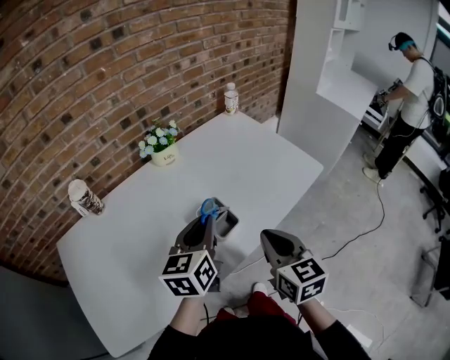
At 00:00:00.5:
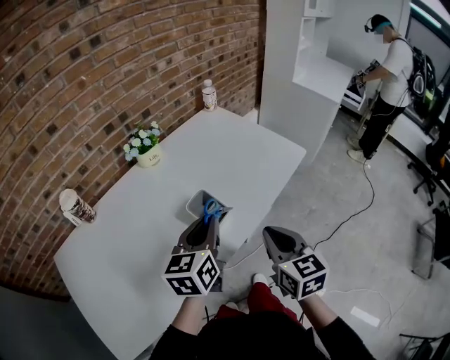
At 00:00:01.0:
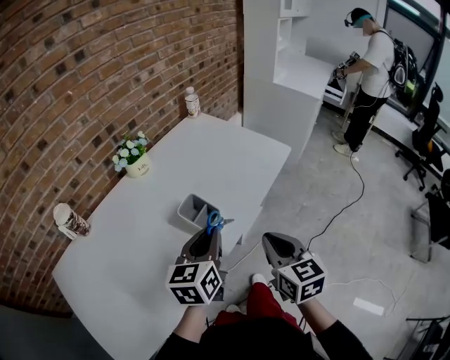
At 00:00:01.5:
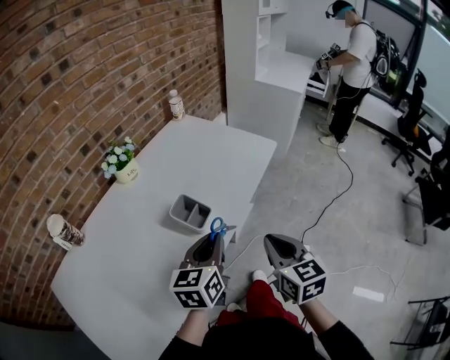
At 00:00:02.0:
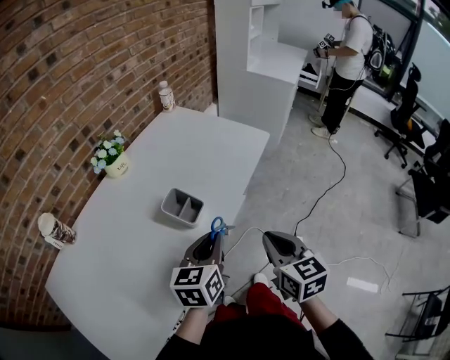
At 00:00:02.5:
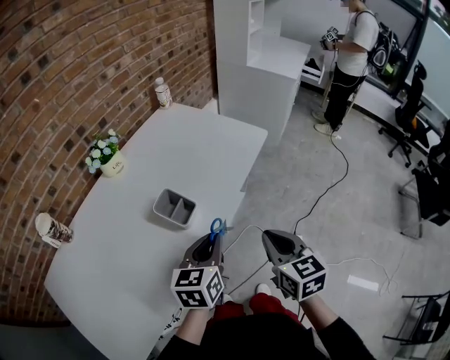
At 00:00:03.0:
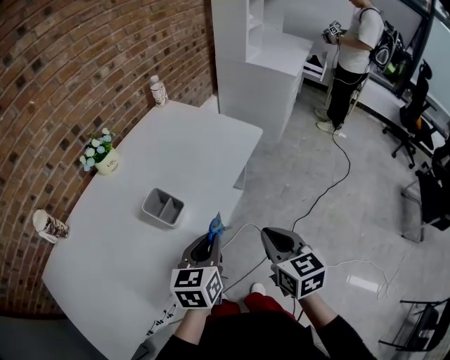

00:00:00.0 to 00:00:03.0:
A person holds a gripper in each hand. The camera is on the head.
00:00:00.0 to 00:00:01.5: Both grippers move backward and to the right, about 10 cm. The left gripper rotates about 20 degrees, while the right gripper rotates about 20 degrees.
00:00:01.5 to 00:00:03.0: The grippers both shift to the right by approximately 10 cm.

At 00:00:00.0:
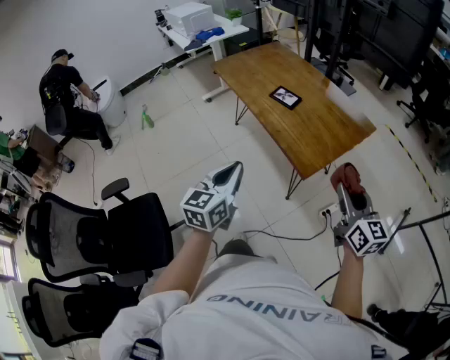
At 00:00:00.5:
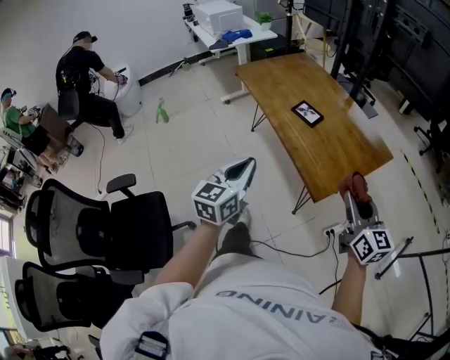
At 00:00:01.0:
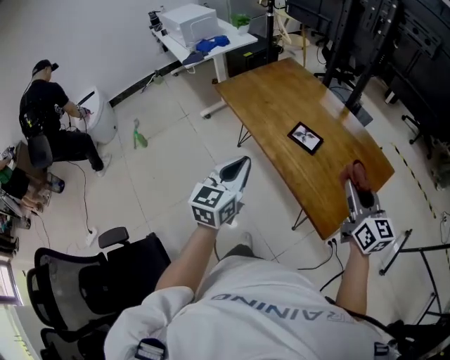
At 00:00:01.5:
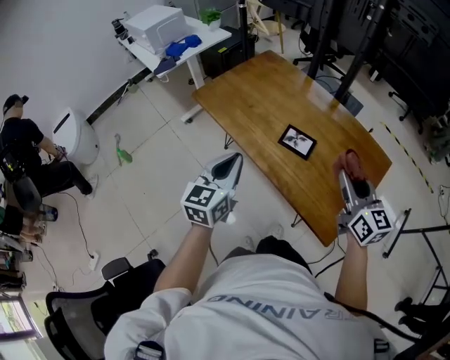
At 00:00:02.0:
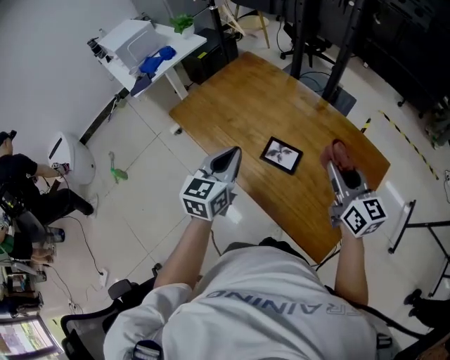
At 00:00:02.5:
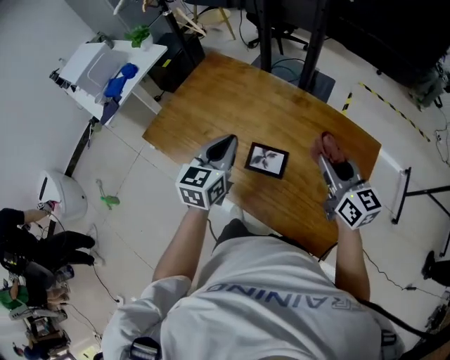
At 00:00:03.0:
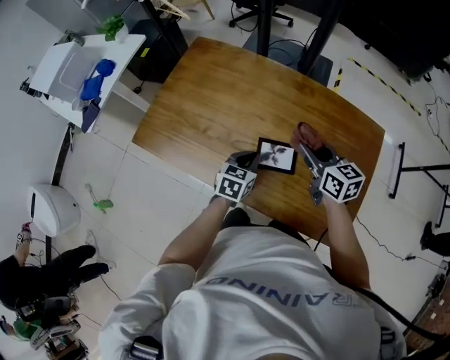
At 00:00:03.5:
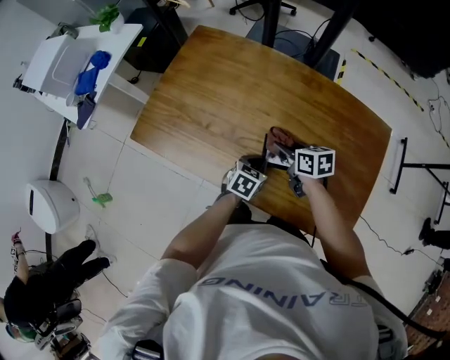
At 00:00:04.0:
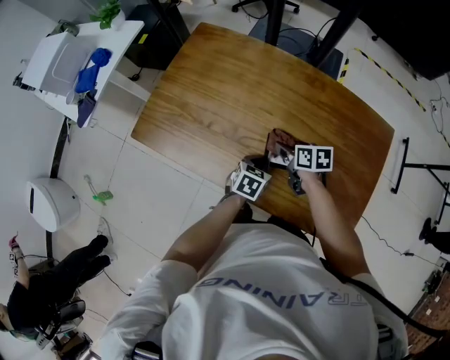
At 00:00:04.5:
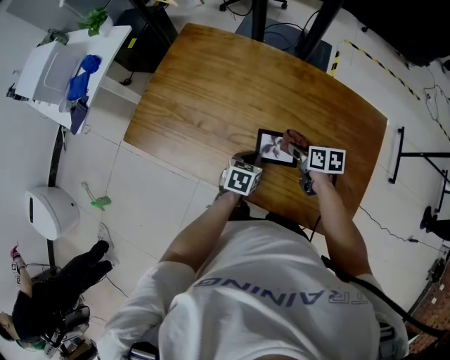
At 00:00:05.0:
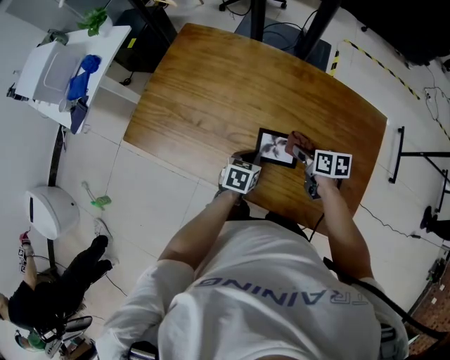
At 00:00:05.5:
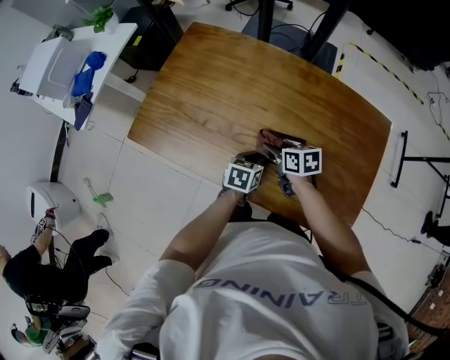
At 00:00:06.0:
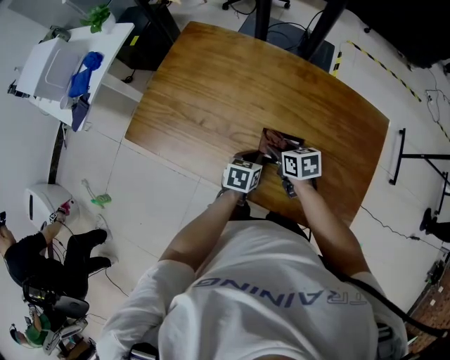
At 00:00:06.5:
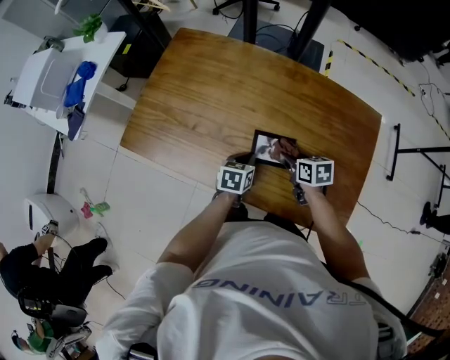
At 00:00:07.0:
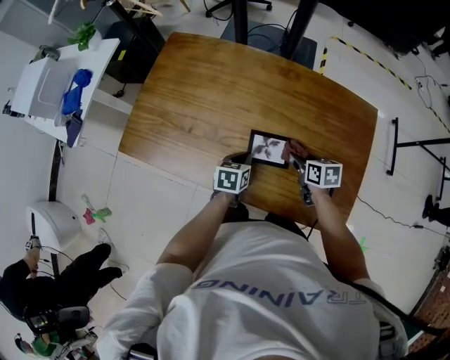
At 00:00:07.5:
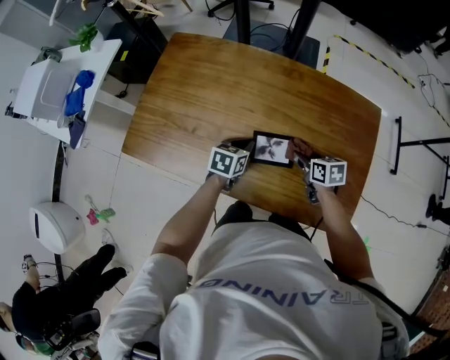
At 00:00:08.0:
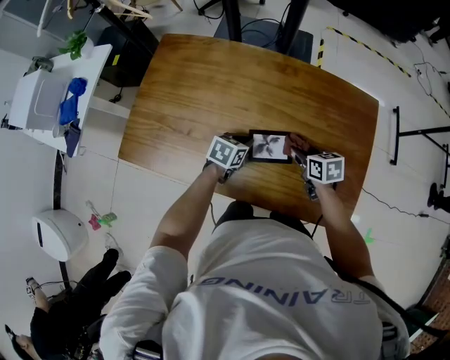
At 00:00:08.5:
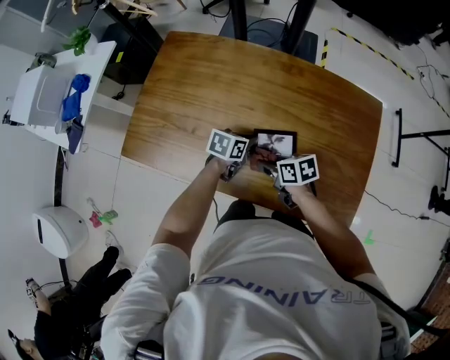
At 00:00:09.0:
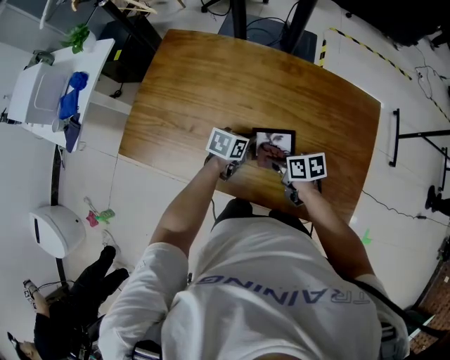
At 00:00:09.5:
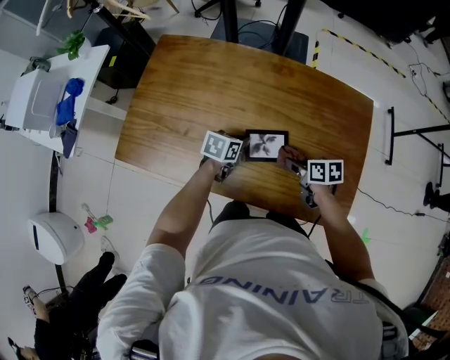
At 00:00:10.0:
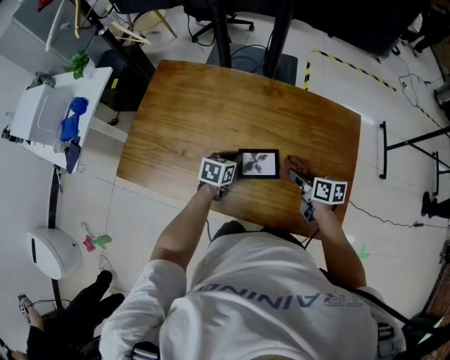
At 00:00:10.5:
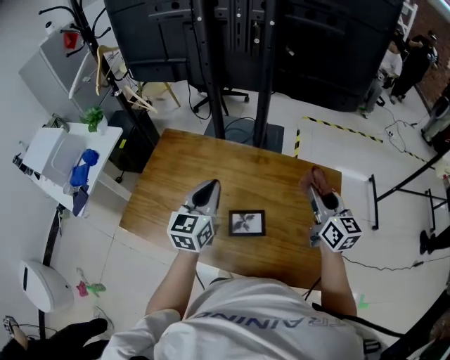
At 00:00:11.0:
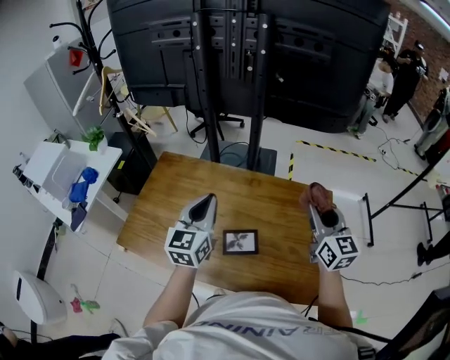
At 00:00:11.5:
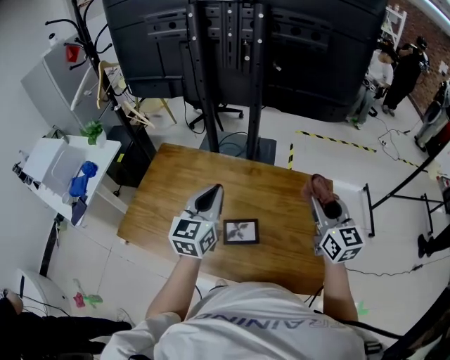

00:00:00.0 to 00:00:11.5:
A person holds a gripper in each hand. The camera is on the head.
00:00:00.0 to 00:00:02.0: The two grippers travel together, forward, some 50 cm.
00:00:02.0 to 00:00:04.0: The left gripper travels downward by roughly 30 cm, and angles its fingers downward, by about 30 degrees. The right gripper goes about 35 cm downward, to the left and forward, and tips its fingers downward by approximately 40 degrees.
00:00:04.0 to 00:00:06.0: The right gripper travels to the right and back again, roughly 10 cm each way.
00:00:06.0 to 00:00:07.5: The left gripper shifts by approximately 5 cm. Meanwhile the right gripper goes some 10 cm to the right.
00:00:09.5 to 00:00:11.5: Both grippers move upward, roughly 35 cm. The left gripper tilts its fingers some 40 degrees upward; the right gripper tilts its fingers roughly 40 degrees upward.

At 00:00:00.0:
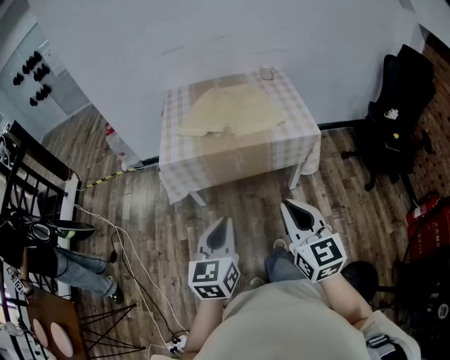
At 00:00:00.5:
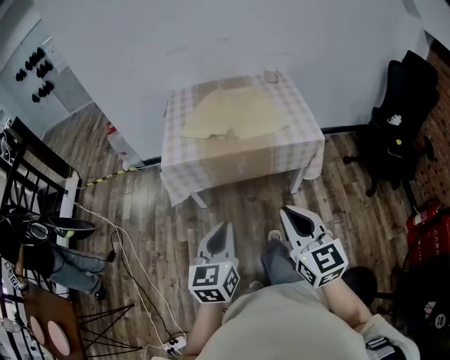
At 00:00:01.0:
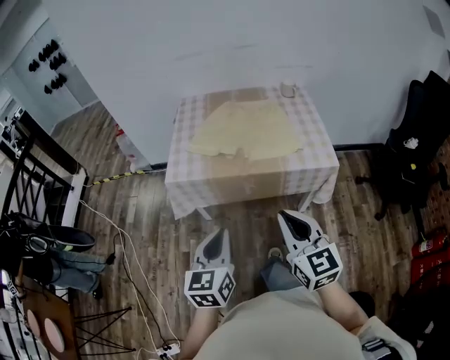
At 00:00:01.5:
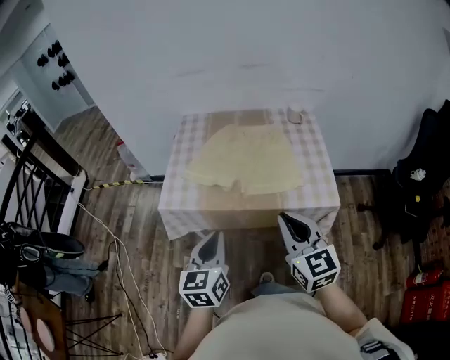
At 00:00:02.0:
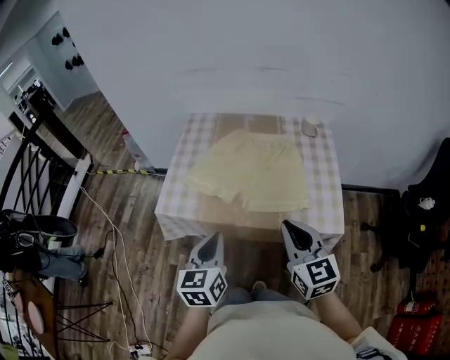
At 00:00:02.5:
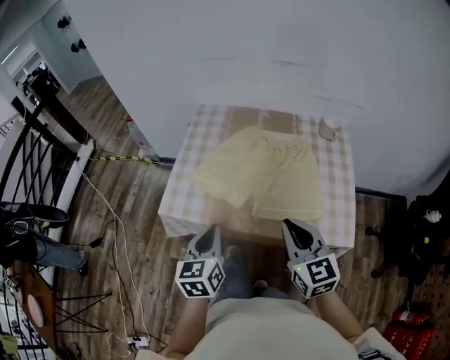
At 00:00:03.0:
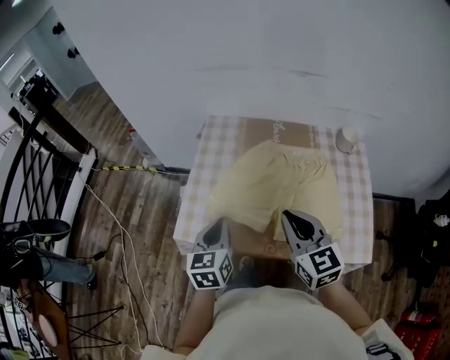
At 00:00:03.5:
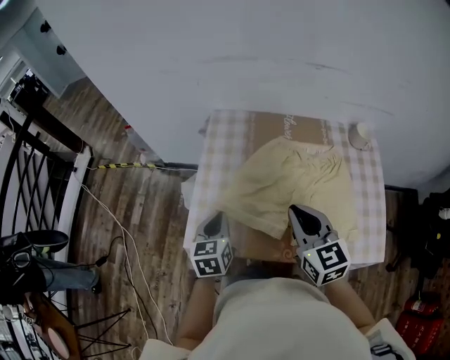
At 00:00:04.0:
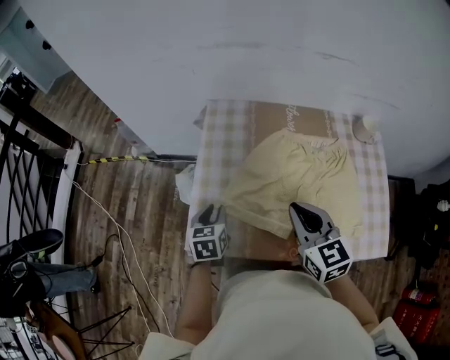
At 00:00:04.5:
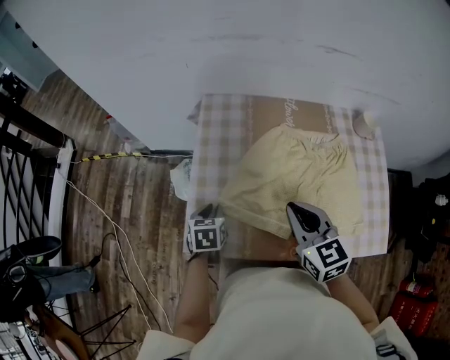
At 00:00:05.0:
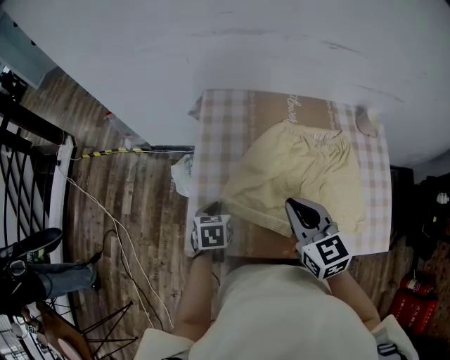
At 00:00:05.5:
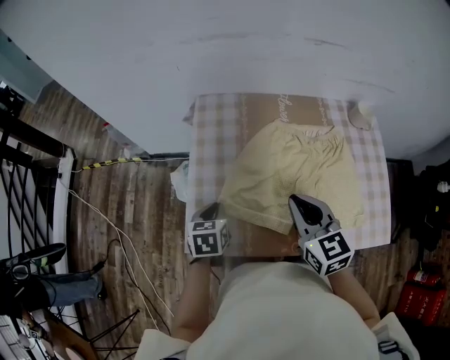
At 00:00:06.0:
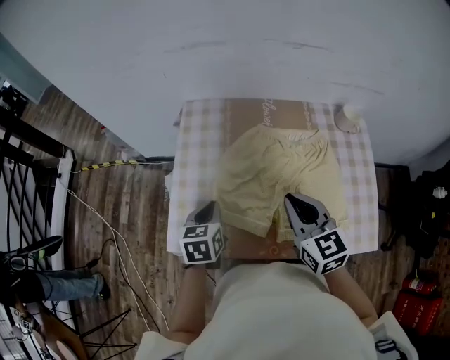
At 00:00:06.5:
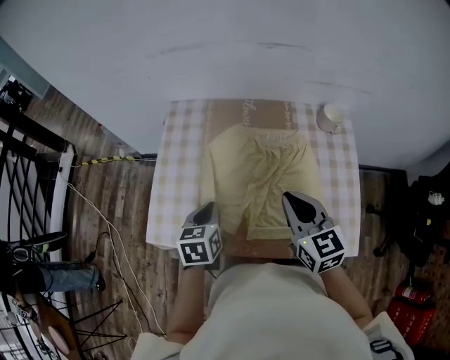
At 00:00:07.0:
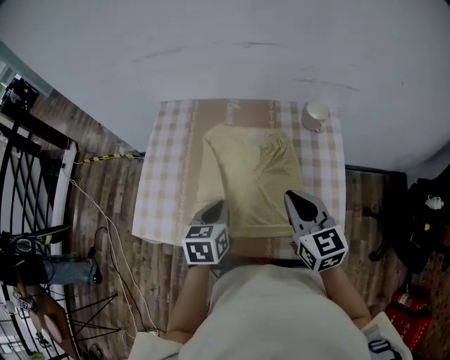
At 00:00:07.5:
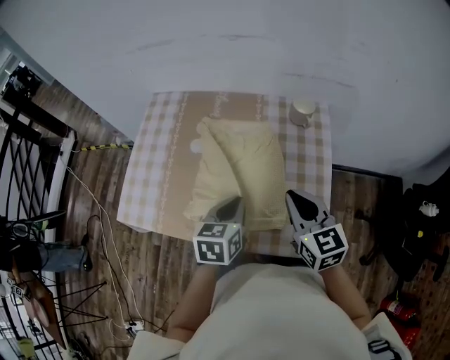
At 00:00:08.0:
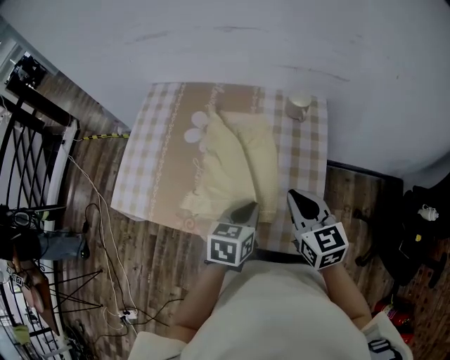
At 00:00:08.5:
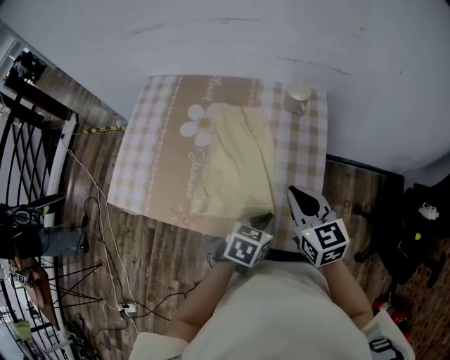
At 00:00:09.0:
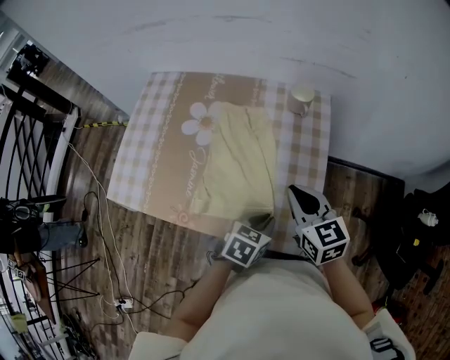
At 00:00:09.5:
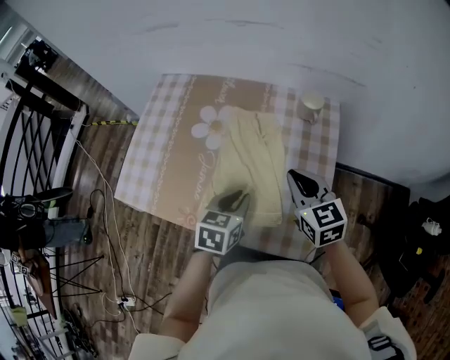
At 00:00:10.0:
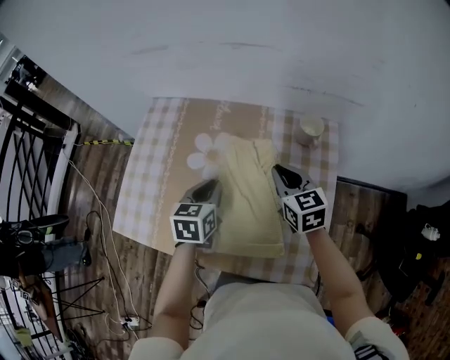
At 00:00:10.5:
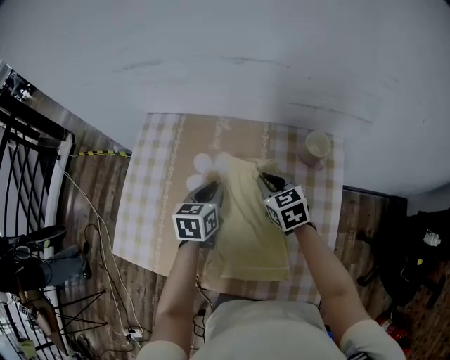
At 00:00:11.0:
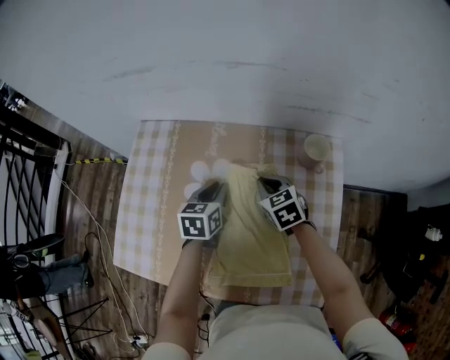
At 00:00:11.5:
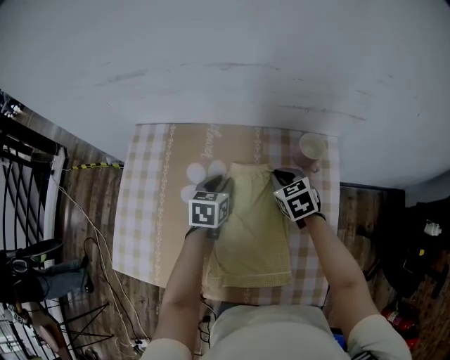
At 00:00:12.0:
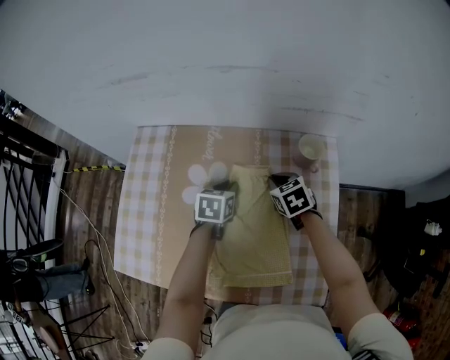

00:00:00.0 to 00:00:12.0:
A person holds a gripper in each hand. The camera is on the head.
00:00:00.0 to 00:00:02.0: The two grippers go about 30 cm forward.
00:00:02.0 to 00:00:04.0: The left gripper heads forward, downward and to the left, covering approximately 35 cm, swivels roughly 20 degrees, and opens its fingers. The right gripper is displaced forward and to the left by roughly 30 cm.
00:00:04.0 to 00:00:06.0: The two grippers go roughly 5 cm to the right. The left gripper closes.
00:00:06.0 to 00:00:08.0: Both grippers travel together to the right, about 35 cm.
00:00:08.0 to 00:00:10.0: The right gripper moves forward, approximately 15 cm; the left gripper is displaced forward and to the left by some 20 cm.
00:00:10.0 to 00:00:12.0: The left gripper goes about 15 cm forward and downward; the right gripper travels downward and forward by approximately 15 cm, and changes its angle by about 20 degrees.
